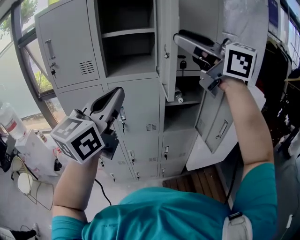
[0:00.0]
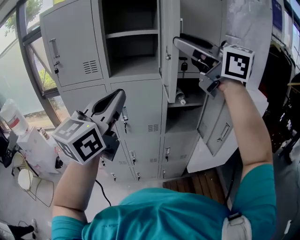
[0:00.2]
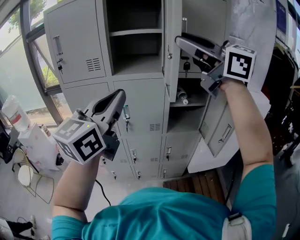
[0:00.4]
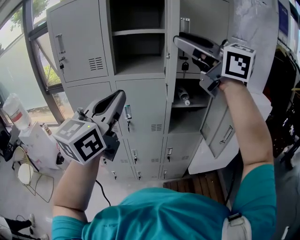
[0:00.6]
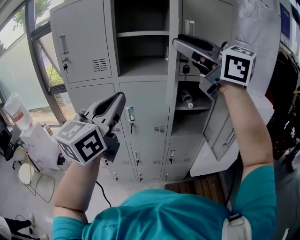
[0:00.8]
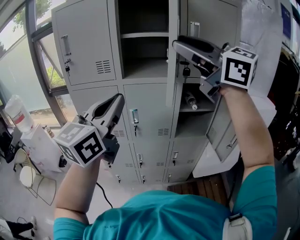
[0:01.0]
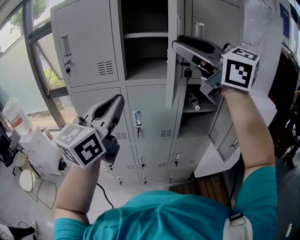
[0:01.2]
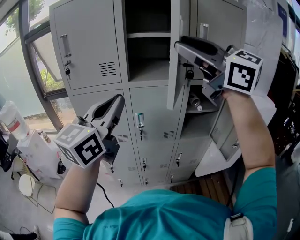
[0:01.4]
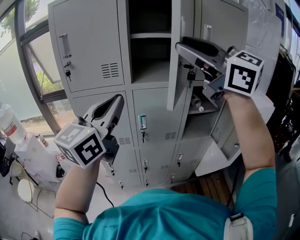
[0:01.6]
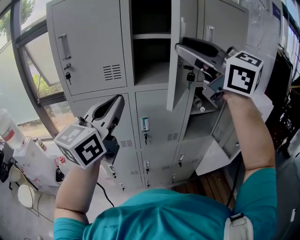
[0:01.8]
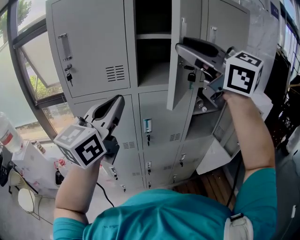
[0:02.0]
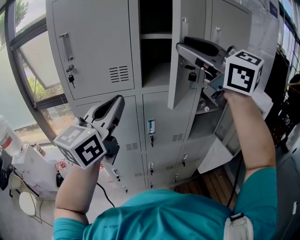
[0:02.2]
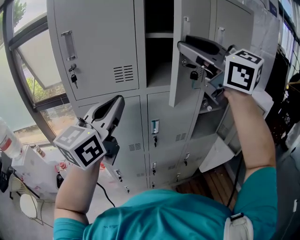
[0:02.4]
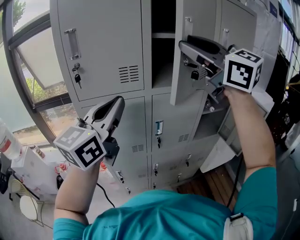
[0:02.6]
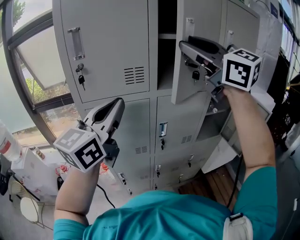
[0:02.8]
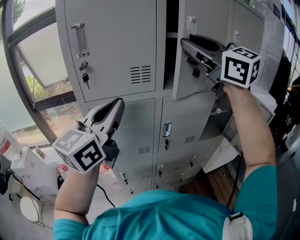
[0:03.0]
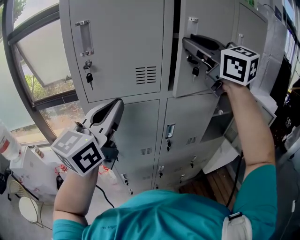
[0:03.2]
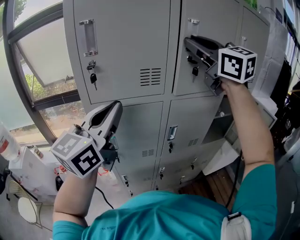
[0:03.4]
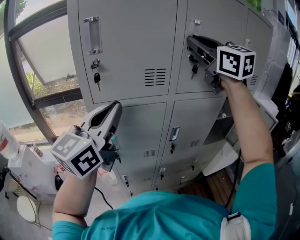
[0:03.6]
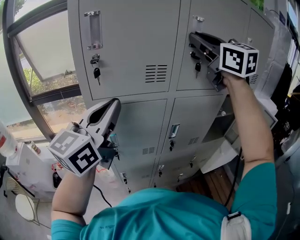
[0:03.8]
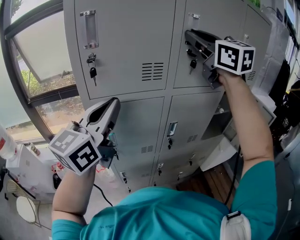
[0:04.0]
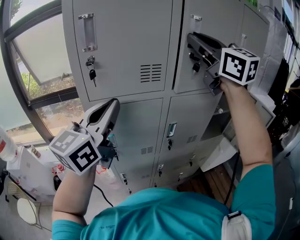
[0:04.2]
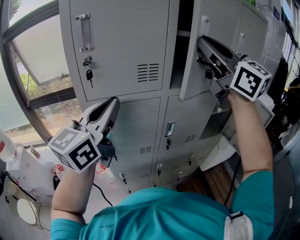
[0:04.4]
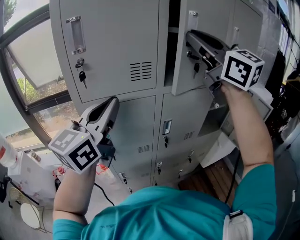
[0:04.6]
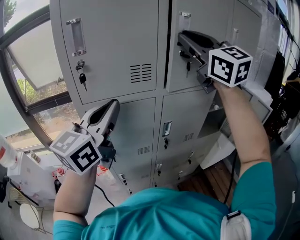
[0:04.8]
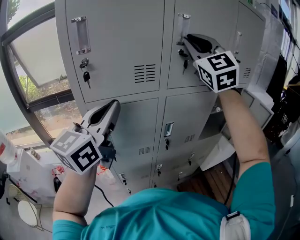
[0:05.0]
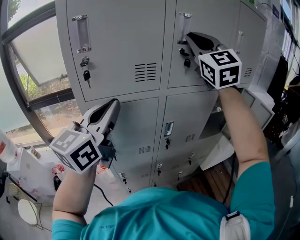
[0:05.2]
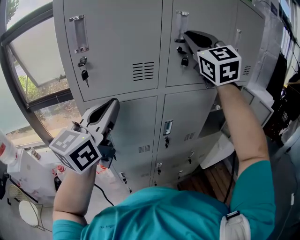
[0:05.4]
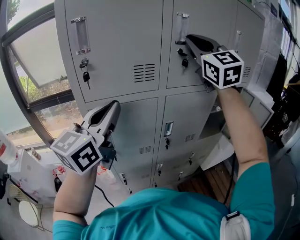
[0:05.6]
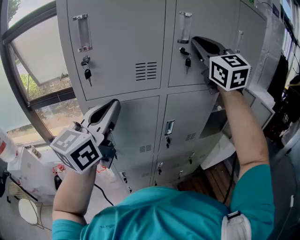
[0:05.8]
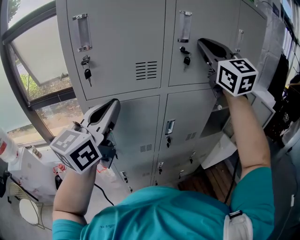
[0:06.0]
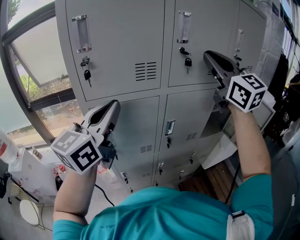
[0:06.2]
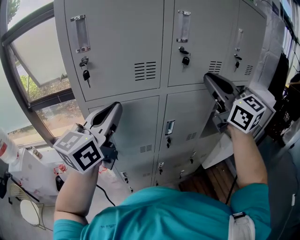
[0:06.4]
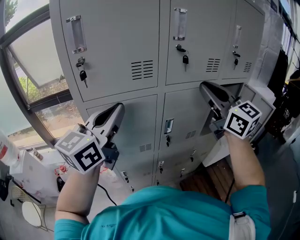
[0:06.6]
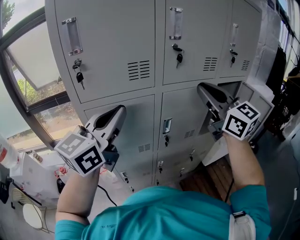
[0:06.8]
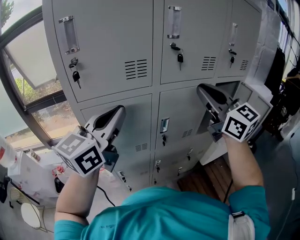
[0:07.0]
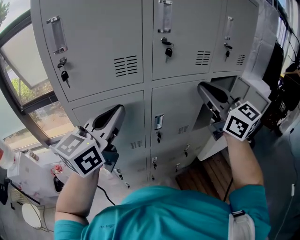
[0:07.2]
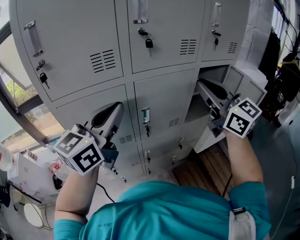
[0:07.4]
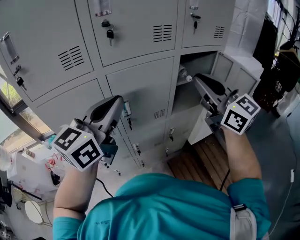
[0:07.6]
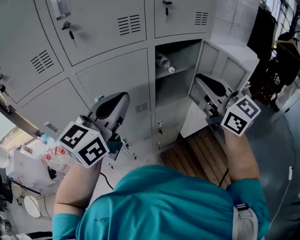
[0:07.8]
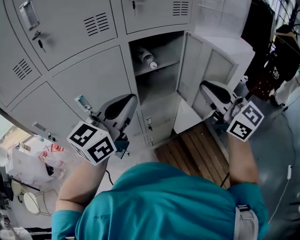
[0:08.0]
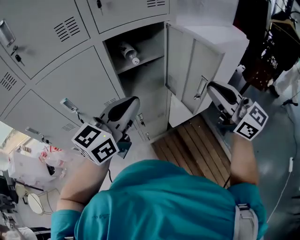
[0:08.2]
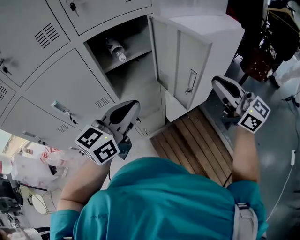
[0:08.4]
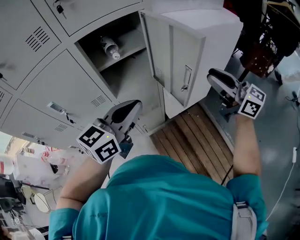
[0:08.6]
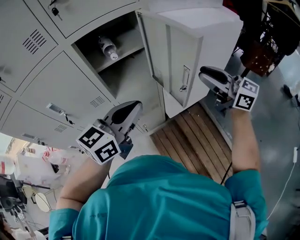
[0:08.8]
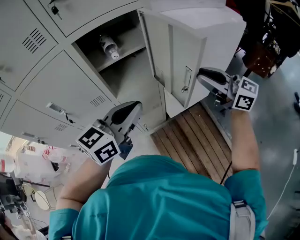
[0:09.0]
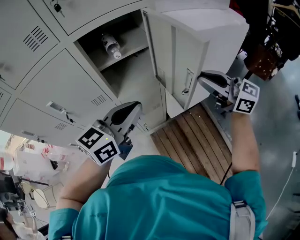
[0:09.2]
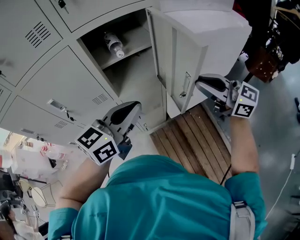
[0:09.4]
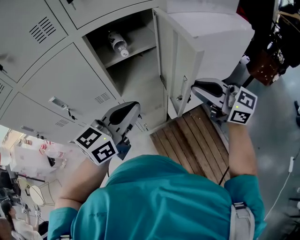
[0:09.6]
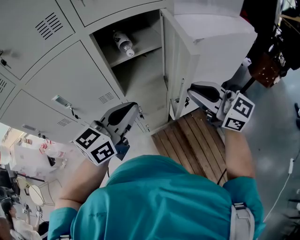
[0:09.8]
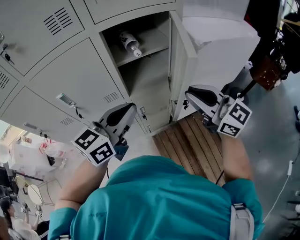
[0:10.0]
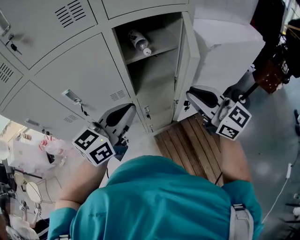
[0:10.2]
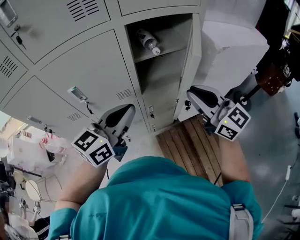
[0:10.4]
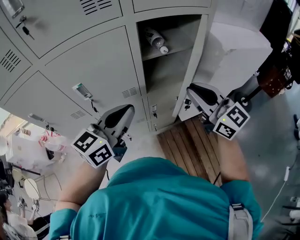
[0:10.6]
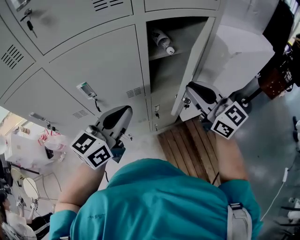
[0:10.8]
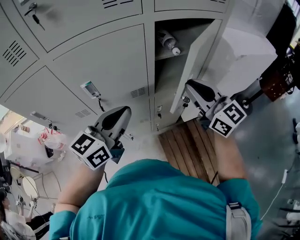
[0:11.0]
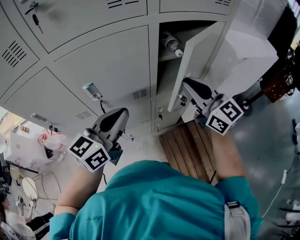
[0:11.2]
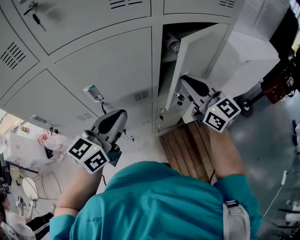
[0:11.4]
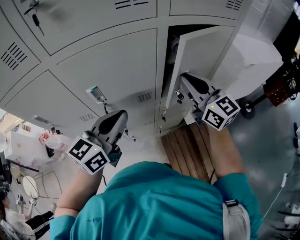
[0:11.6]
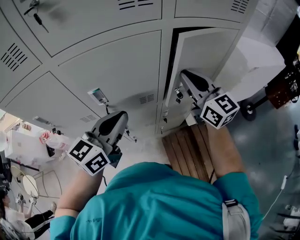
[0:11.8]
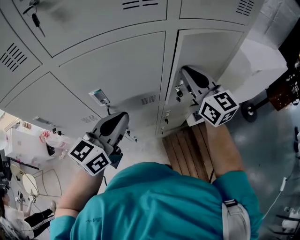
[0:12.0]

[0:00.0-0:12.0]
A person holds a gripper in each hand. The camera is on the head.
0:00.0 to 0:01.6: The two grippers go approximately 15 cm to the left and forward.
0:01.6 to 0:03.0: The right gripper shifts about 15 cm forward and to the left. Meanwhile the left gripper goes about 15 cm to the left and forward.
0:03.0 to 0:04.4: The right gripper goes forward and returns, roughly 5 cm each way.
0:04.4 to 0:06.0: The right gripper shifts about 5 cm forward, and turns by about 20 degrees.
0:06.0 to 0:07.6: The left gripper goes roughly 20 cm to the right. Meanwhile the right gripper moves to the right and downward, about 25 cm, and changes its angle by some 20 degrees.
0:07.6 to 0:09.0: The grippers both shift to the right and downward by some 40 cm. The right gripper swivels some 20 degrees.
0:09.0 to 0:10.4: Both grippers move to the left, roughly 20 cm.
0:10.4 to 0:12.0: The left gripper shifts approximately 15 cm to the left; the right gripper moves forward and to the left, approximately 20 cm.

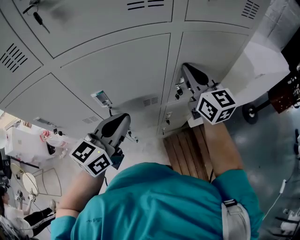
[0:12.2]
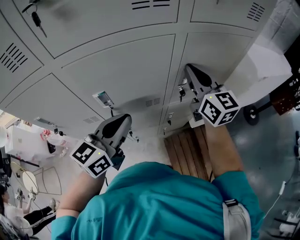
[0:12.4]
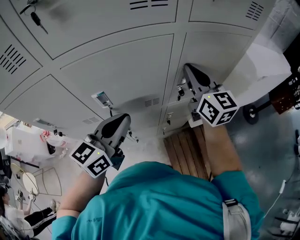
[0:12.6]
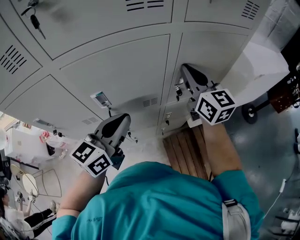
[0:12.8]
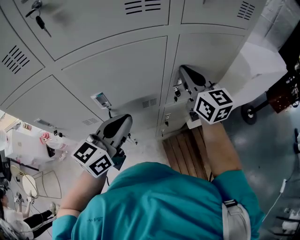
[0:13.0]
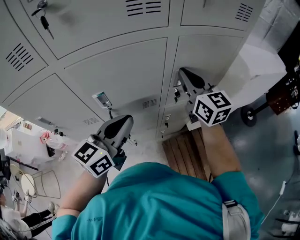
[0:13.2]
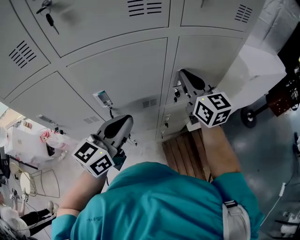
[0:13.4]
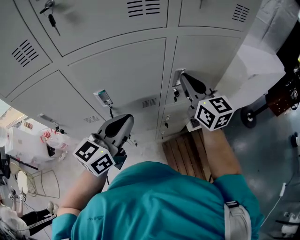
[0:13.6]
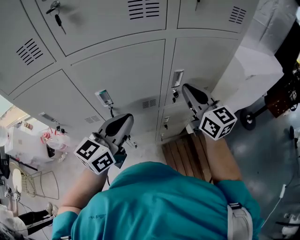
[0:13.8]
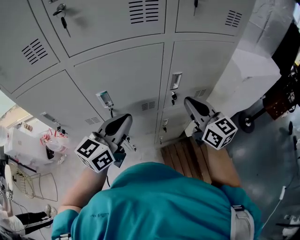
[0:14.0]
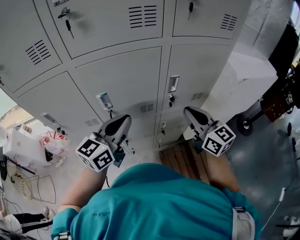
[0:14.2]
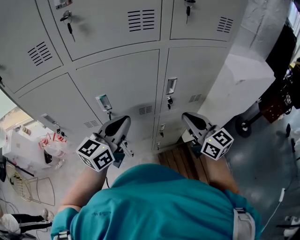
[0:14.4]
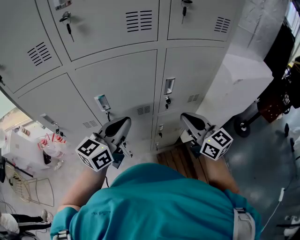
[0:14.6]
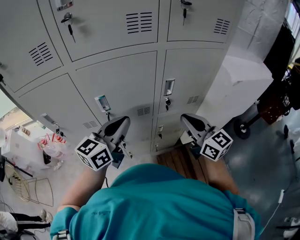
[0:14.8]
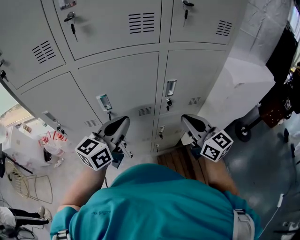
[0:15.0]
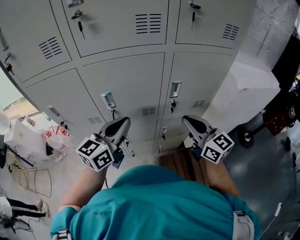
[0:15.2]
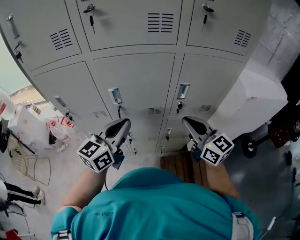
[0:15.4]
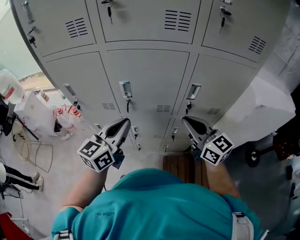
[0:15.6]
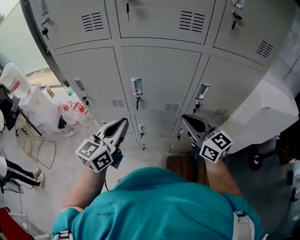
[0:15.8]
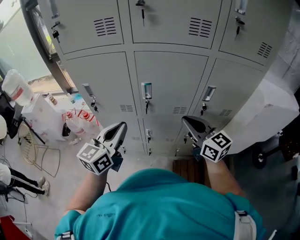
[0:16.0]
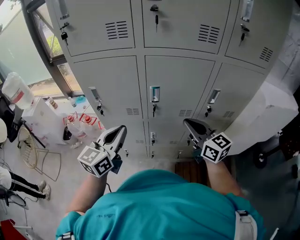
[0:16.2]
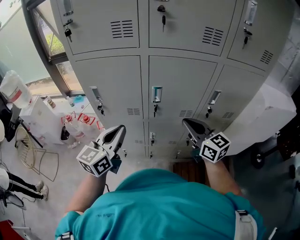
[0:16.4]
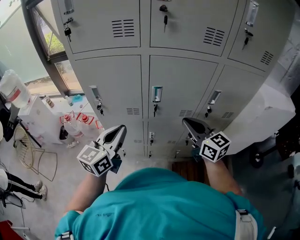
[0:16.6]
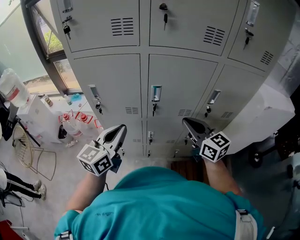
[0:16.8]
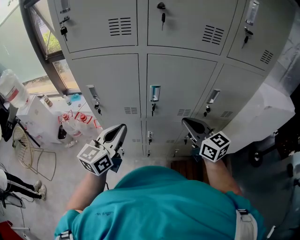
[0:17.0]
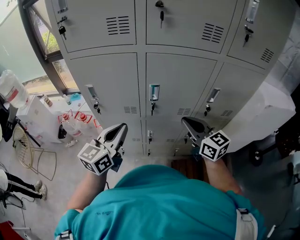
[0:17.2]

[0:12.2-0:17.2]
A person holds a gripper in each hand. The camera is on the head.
0:12.2 to 0:13.8: The right gripper heads backward, covering approximately 5 cm.
0:13.8 to 0:15.6: The right gripper travels backward by approximately 10 cm, and swivels roughly 20 degrees. The left gripper shifts by some 5 cm.
0:15.6 to 0:17.2: Both grippers travel together to the left, some 15 cm.

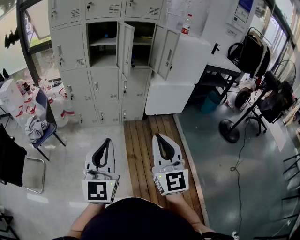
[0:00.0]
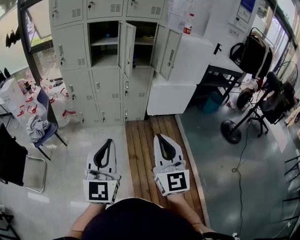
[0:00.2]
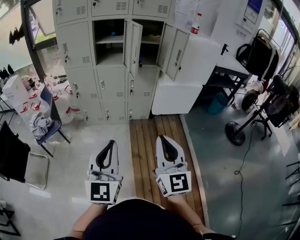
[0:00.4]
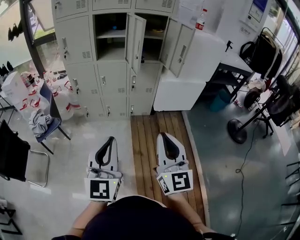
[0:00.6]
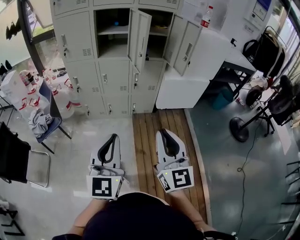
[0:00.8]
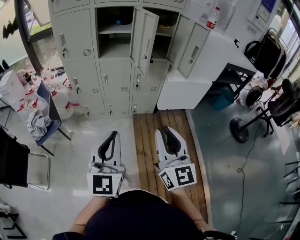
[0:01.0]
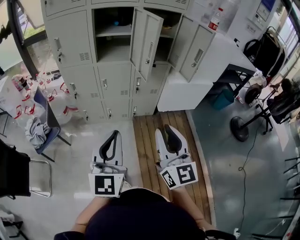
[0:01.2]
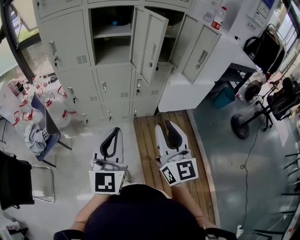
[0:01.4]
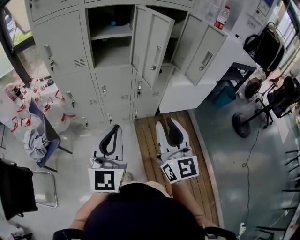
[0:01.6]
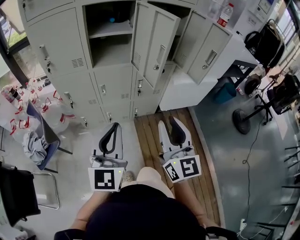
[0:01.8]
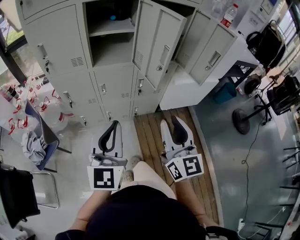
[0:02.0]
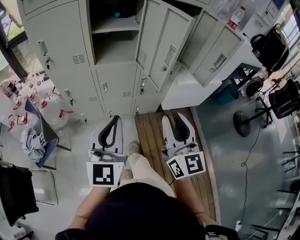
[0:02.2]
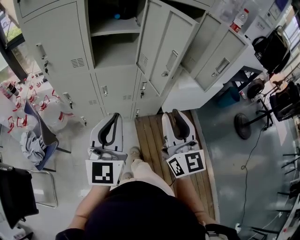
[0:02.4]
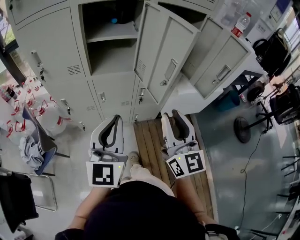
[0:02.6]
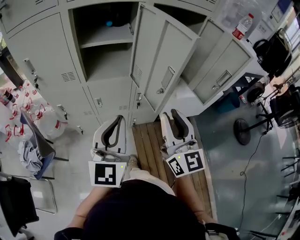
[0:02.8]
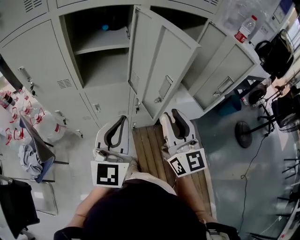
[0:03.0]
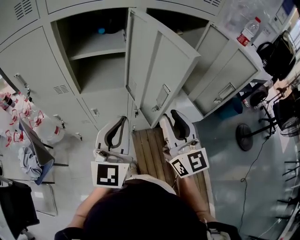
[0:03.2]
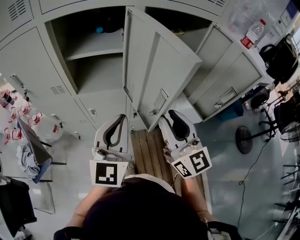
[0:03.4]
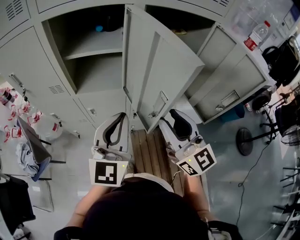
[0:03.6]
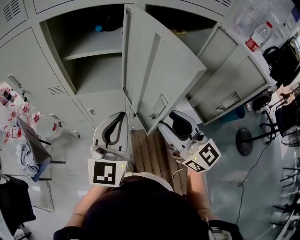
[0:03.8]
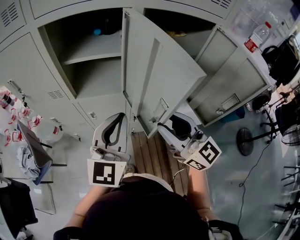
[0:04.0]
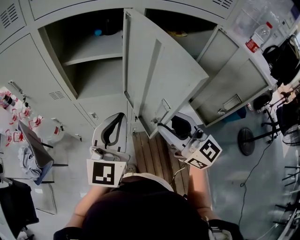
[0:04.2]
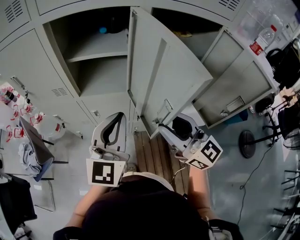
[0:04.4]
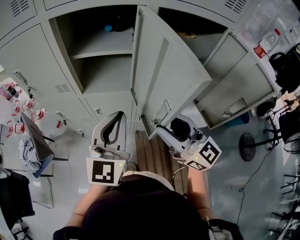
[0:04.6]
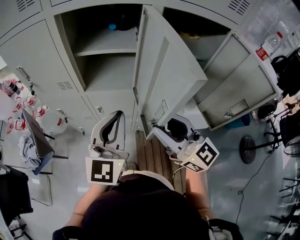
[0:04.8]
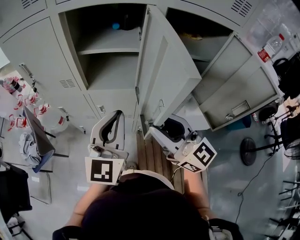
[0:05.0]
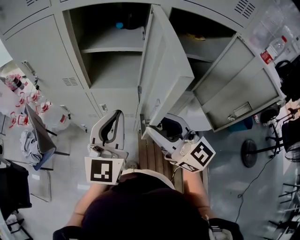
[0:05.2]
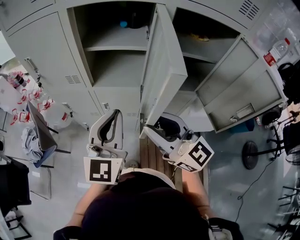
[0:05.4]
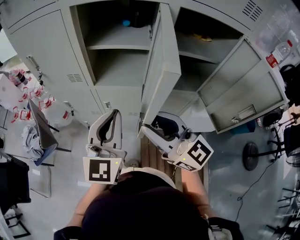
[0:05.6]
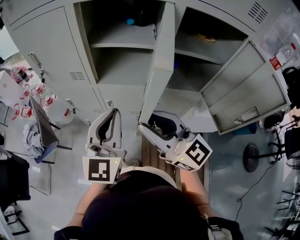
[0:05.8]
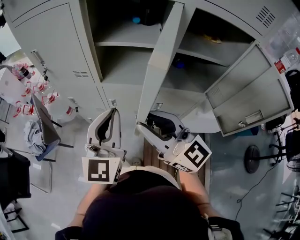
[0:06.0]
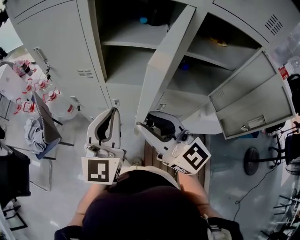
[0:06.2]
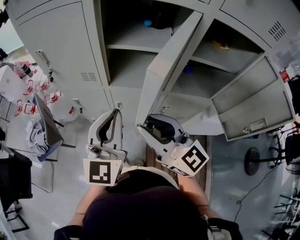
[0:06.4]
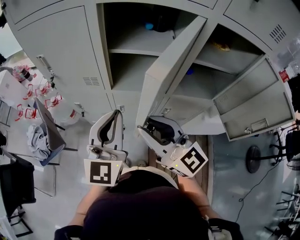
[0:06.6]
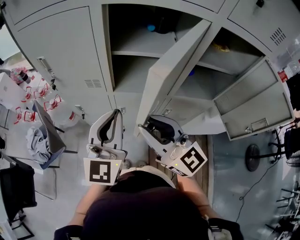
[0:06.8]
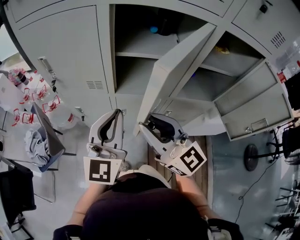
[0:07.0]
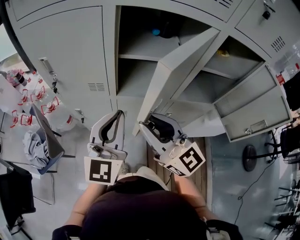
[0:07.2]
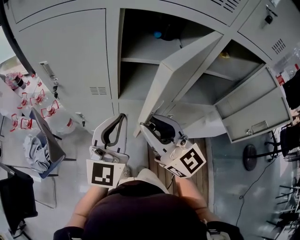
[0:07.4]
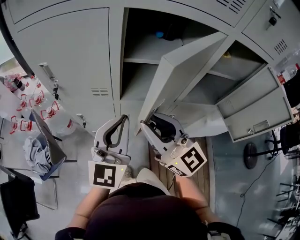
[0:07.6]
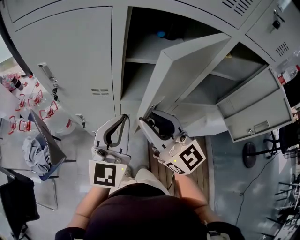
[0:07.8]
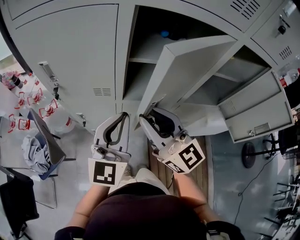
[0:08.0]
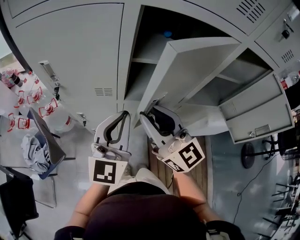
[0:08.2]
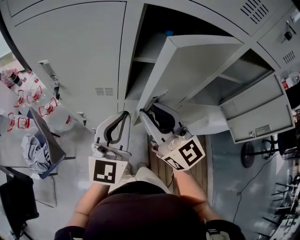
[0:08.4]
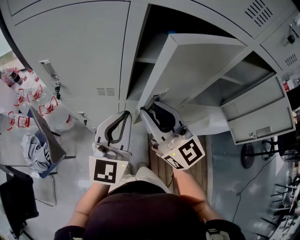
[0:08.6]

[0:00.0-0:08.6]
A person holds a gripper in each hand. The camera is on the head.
0:00.0 to 0:01.4: The left gripper goes about 25 cm forward. Meanwhile the right gripper moves forward and to the left, roughly 25 cm, and opens.
0:01.4 to 0:02.8: Both grippers move forward, some 25 cm.
0:02.8 to 0:04.4: The left gripper travels forward and to the right by approximately 15 cm, while the right gripper moves forward, about 10 cm, and swivels about 40 degrees.
0:04.4 to 0:05.8: The right gripper shifts about 10 cm to the left. Meanwhile the left gripper heads to the left, covering roughly 5 cm.
0:05.8 to 0:07.2: The two grippers go about 10 cm forward and to the left.
0:07.2 to 0:08.6: The right gripper moves forward, some 10 cm; the left gripper shifts by some 5 cm.